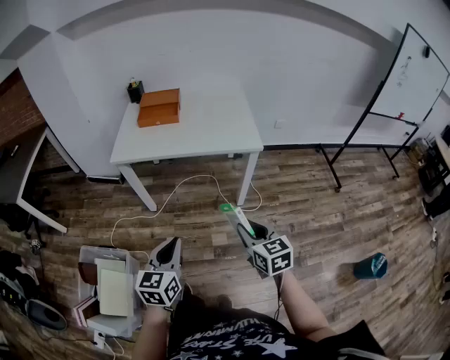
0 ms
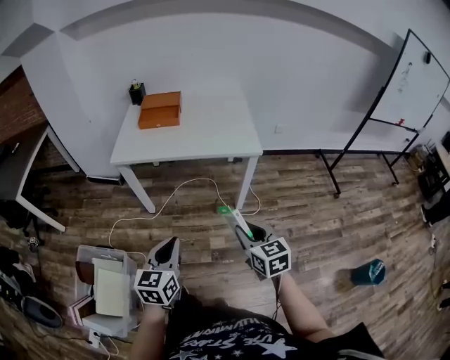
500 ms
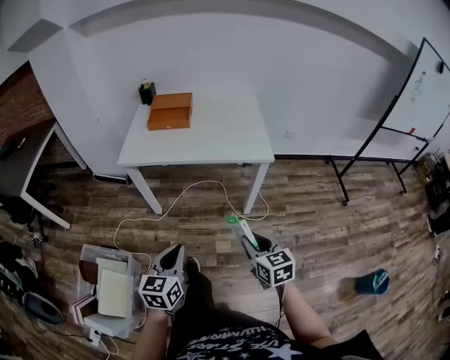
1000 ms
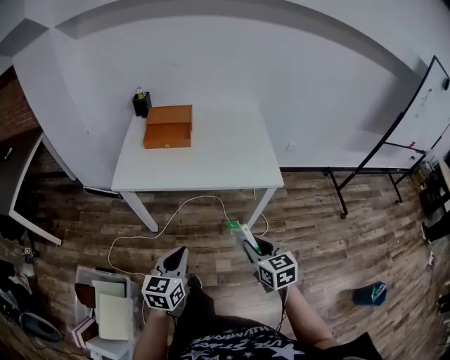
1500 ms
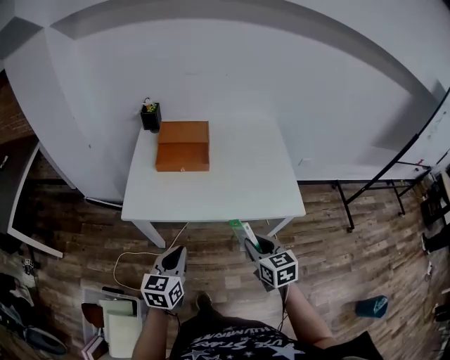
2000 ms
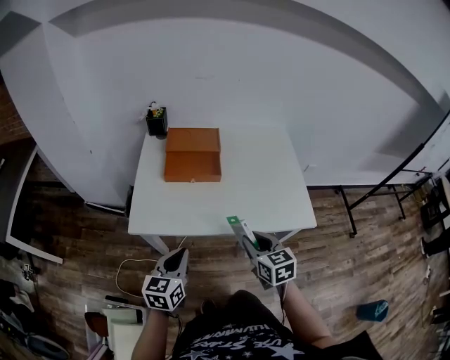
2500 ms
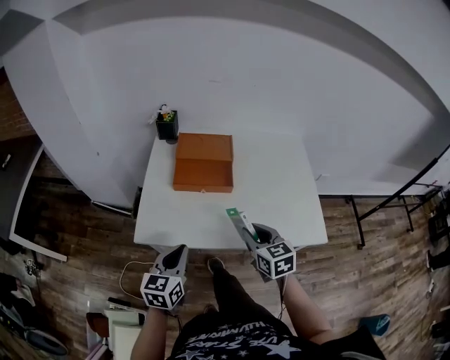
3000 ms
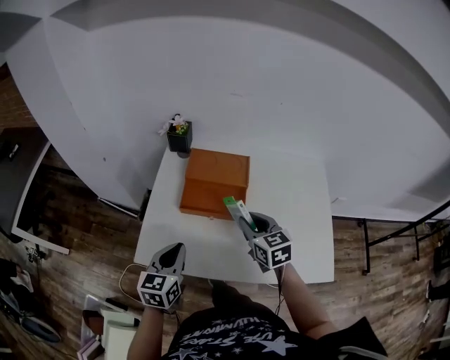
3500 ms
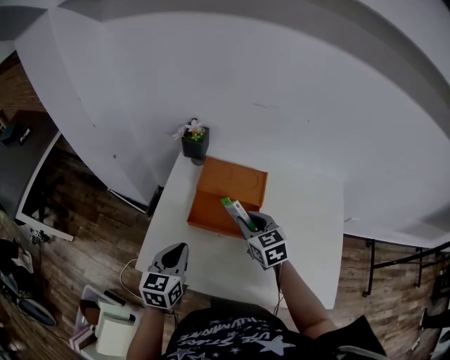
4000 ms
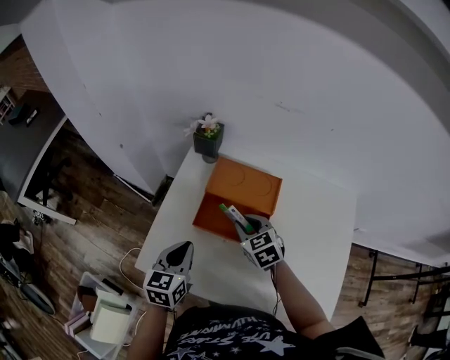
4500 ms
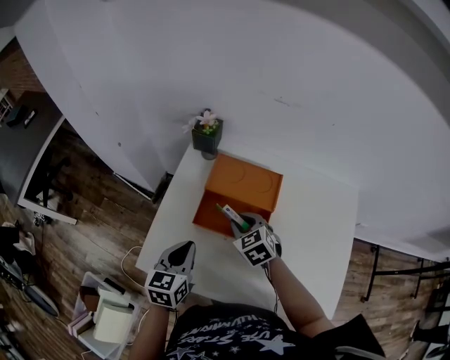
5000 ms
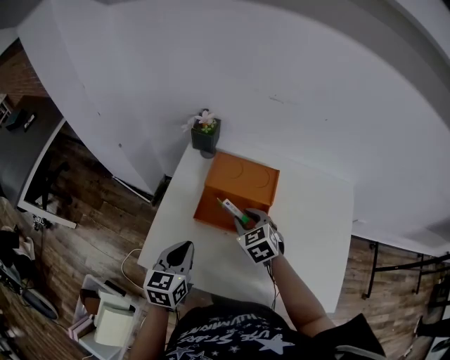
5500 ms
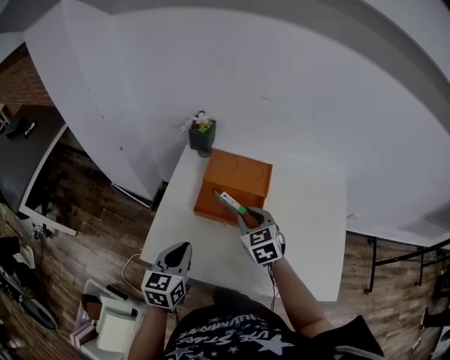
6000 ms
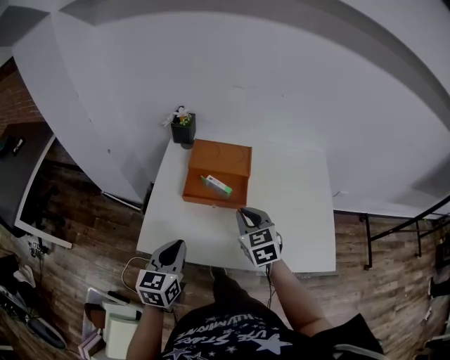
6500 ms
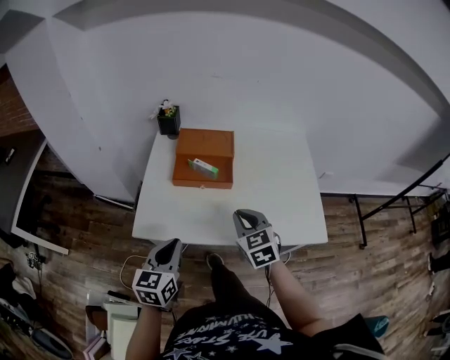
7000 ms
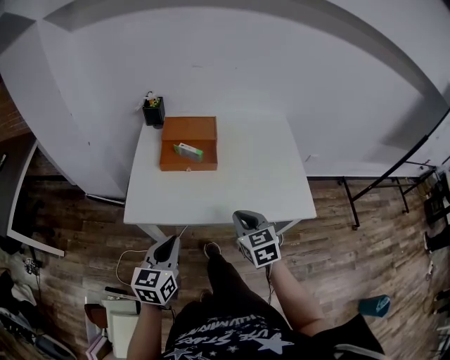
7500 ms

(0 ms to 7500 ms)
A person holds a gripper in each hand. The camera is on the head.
0 ms - 2000 ms: The grippers both shift forward by roughly 35 cm.
2000 ms - 4000 ms: The grippers both shift forward by some 40 cm. The right gripper swivels roughly 20 degrees.
4000 ms - 5500 ms: The right gripper ends up some 5 cm from where it was.
5500 ms - 7500 ms: Both grippers travel together backward, about 30 cm. The right gripper rotates about 30 degrees.

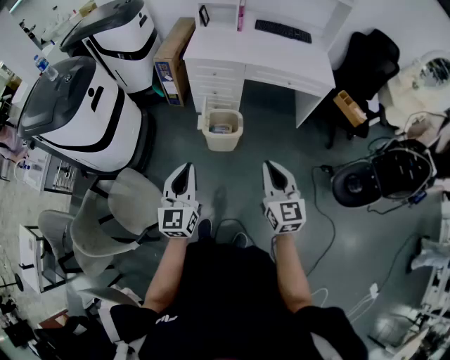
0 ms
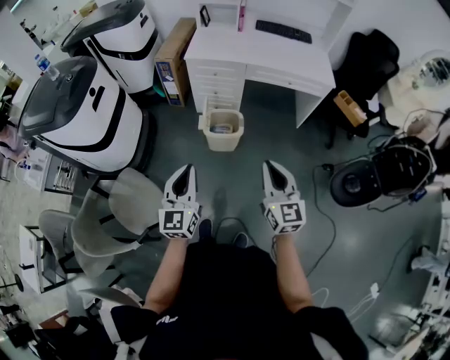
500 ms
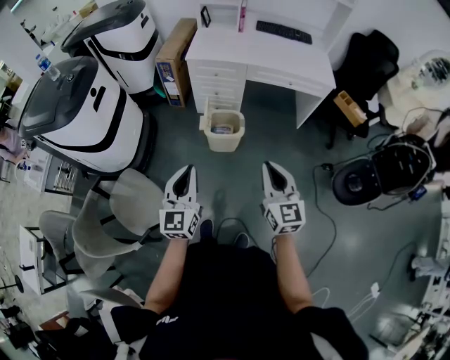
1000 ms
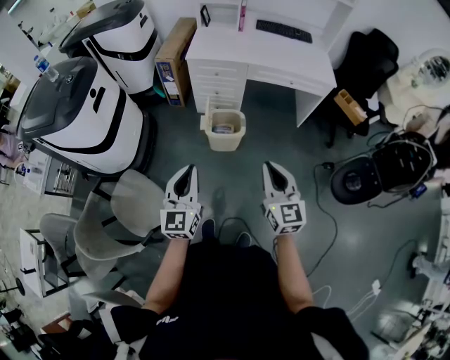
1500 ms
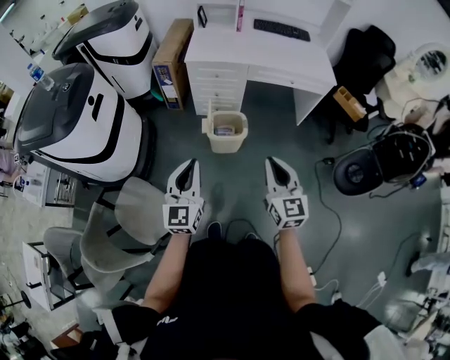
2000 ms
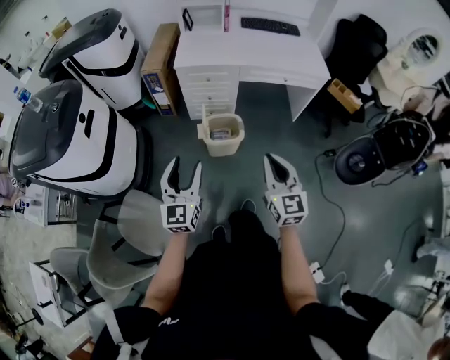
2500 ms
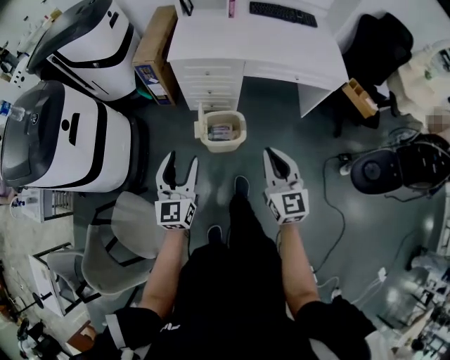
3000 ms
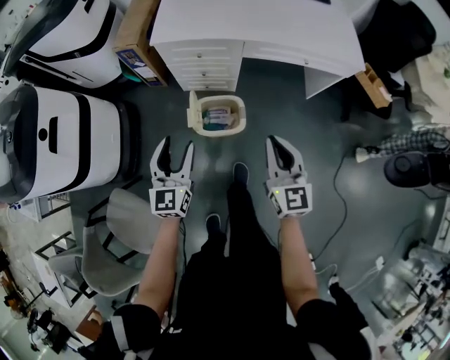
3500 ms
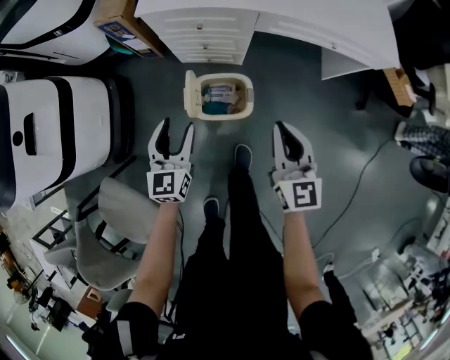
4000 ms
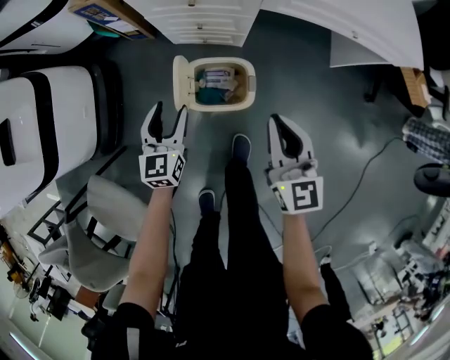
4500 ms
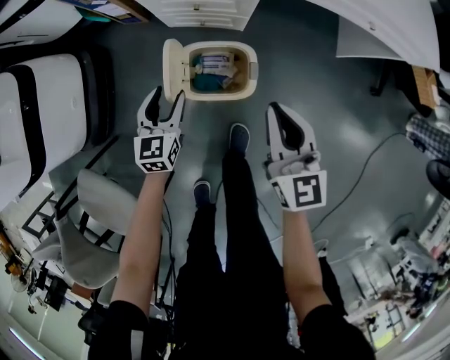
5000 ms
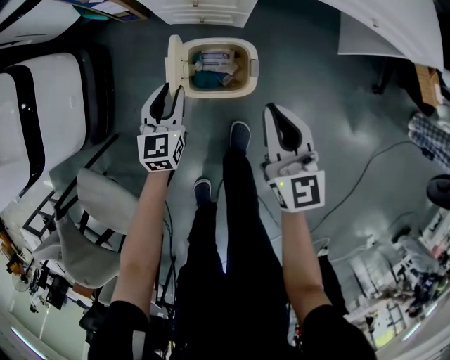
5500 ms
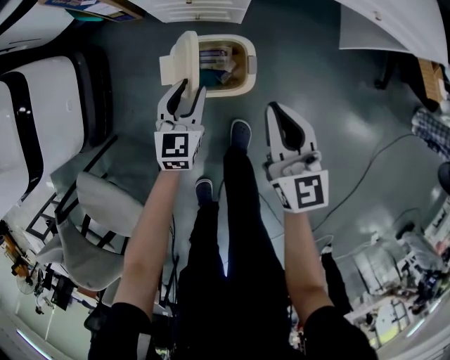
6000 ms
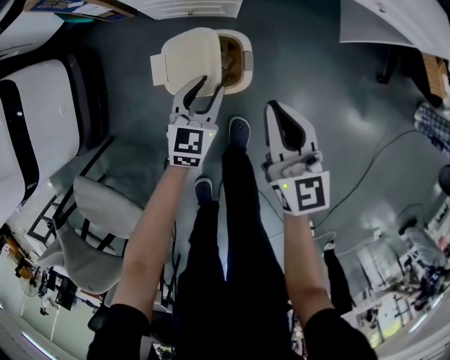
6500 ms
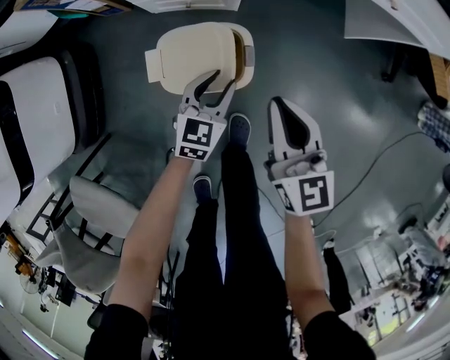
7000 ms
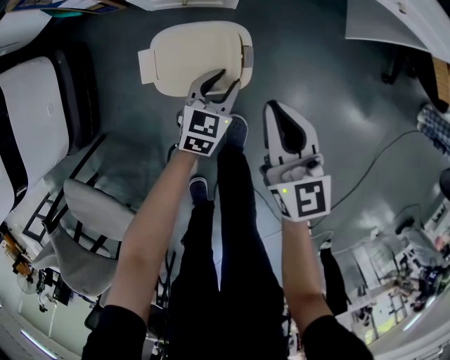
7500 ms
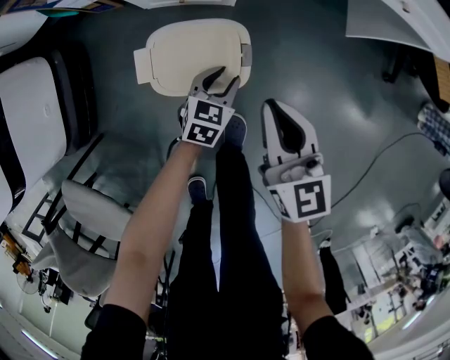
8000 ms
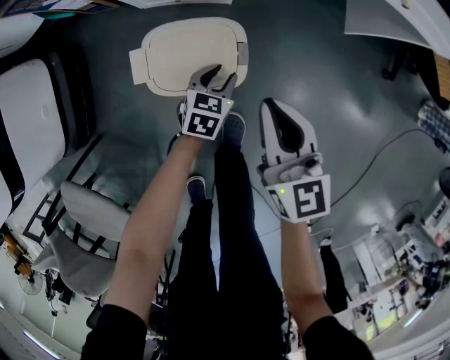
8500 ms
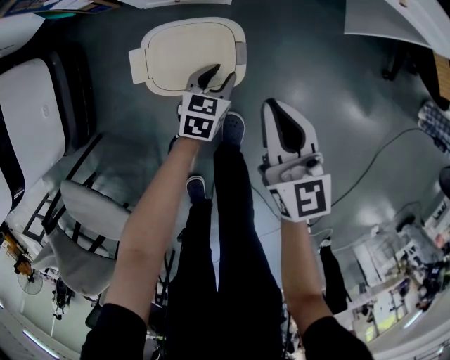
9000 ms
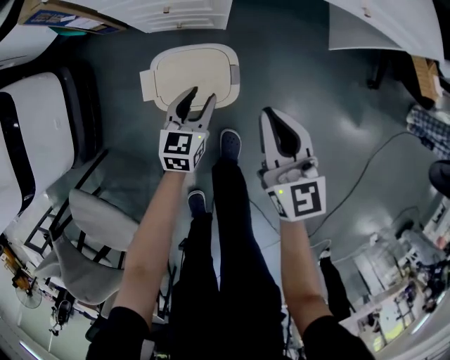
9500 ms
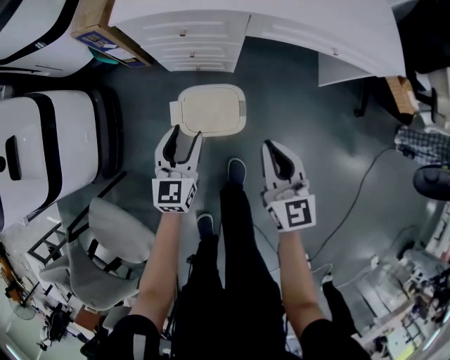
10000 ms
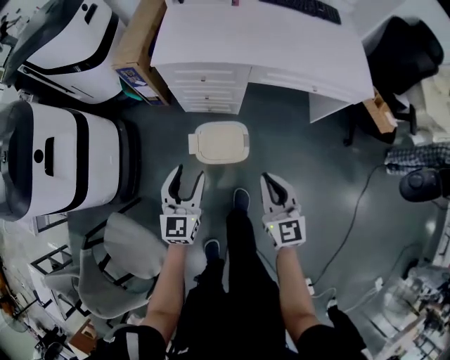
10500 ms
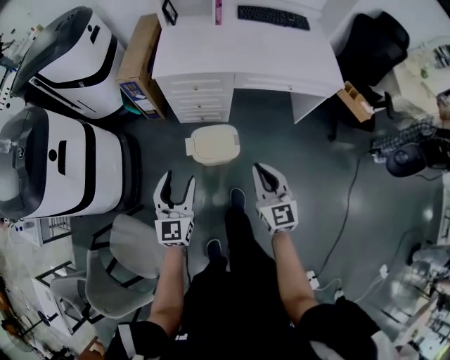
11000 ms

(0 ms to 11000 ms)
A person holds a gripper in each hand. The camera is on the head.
0 ms - 2000 ms: Both grippers travel together to the left, some 5 cm.
2000 ms - 3500 ms: The left gripper shifts roughly 35 cm forward and downward, and opens its fingers, while the right gripper is displaced forward by roughly 30 cm.
3500 ms - 5500 ms: The left gripper heads downward, covering some 35 cm, and closes its fingers. Meanwhile the right gripper goes about 25 cm downward and forward.
5500 ms - 7500 ms: The right gripper moves downward, some 10 cm; the left gripper is displaced to the right and downward by about 20 cm, and changes its angle by approximately 20 degrees.
7500 ms - 9000 ms: The left gripper travels downward by some 5 cm.
9000 ms - 11000 ms: The right gripper is displaced upward and backward by approximately 35 cm. The left gripper heads upward, covering some 60 cm, tilts its fingers some 40 degrees upward, and opens.

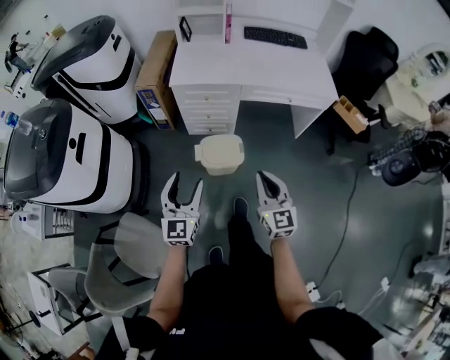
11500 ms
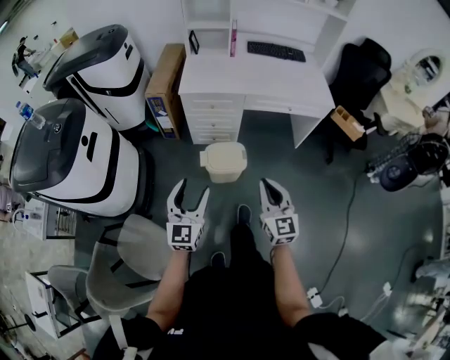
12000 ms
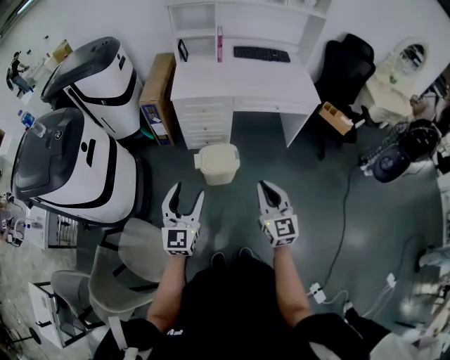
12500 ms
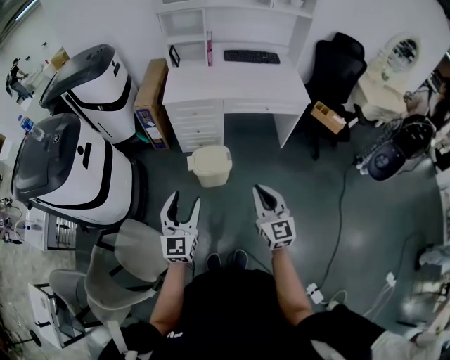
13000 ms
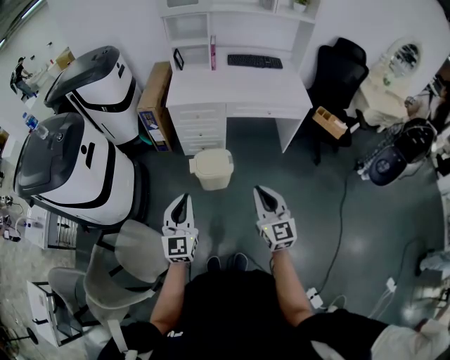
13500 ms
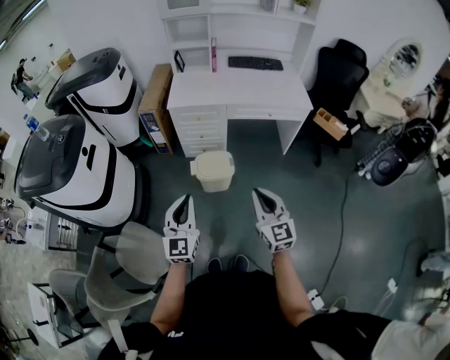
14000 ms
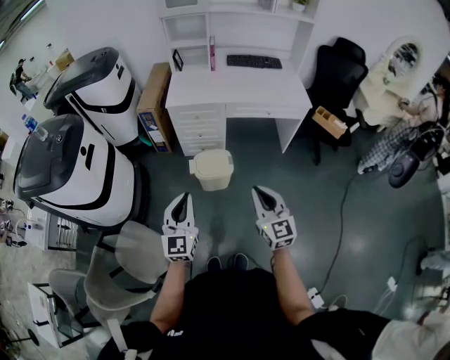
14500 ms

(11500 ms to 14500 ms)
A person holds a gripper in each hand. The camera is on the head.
11500 ms - 13000 ms: The two grippers go about 15 cm backward and upward.
13000 ms - 14500 ms: The left gripper closes up.

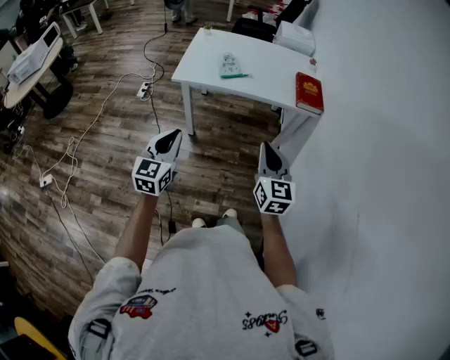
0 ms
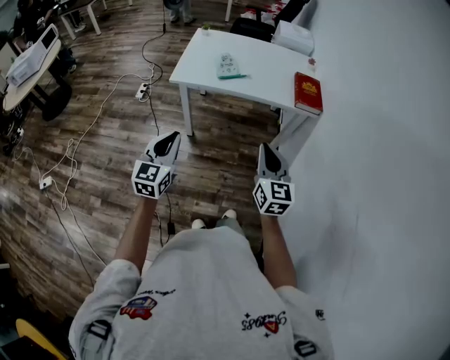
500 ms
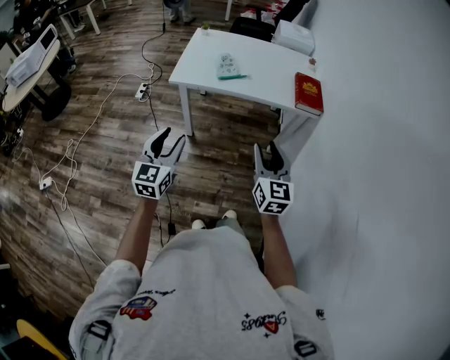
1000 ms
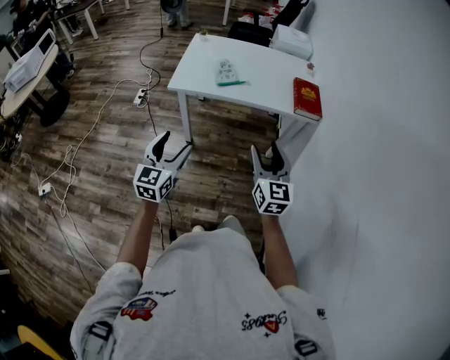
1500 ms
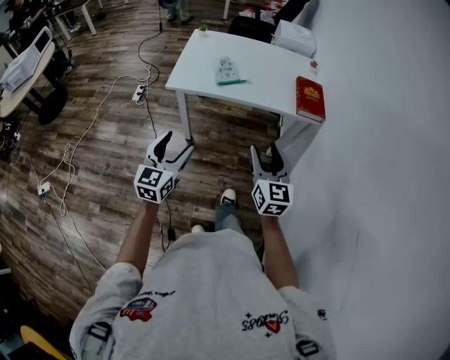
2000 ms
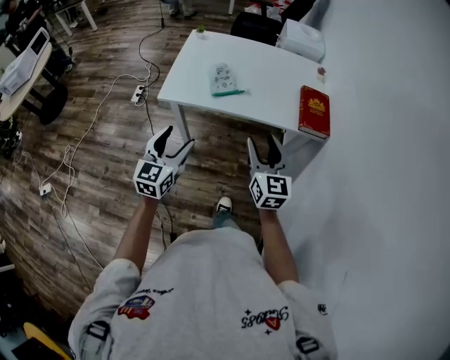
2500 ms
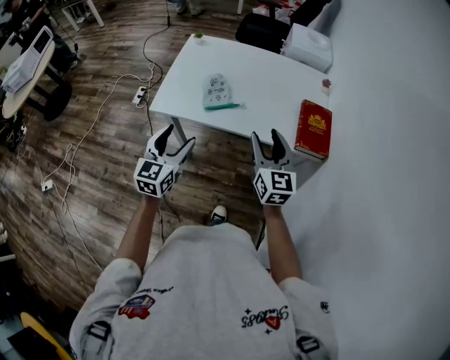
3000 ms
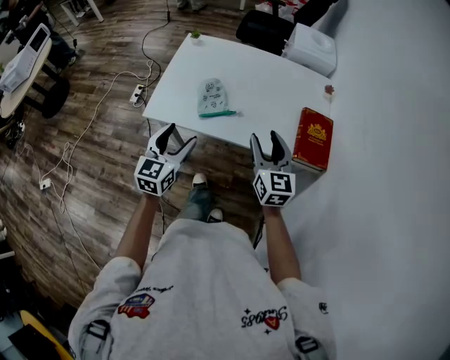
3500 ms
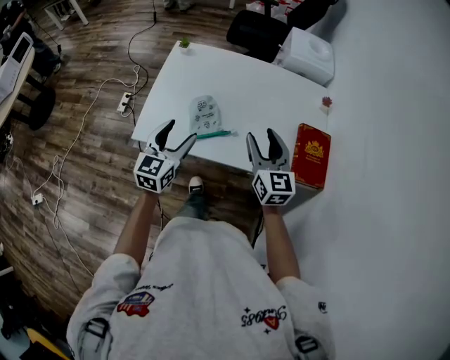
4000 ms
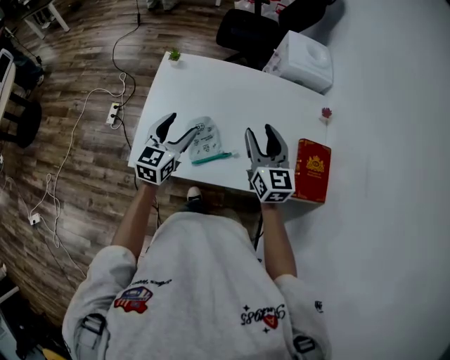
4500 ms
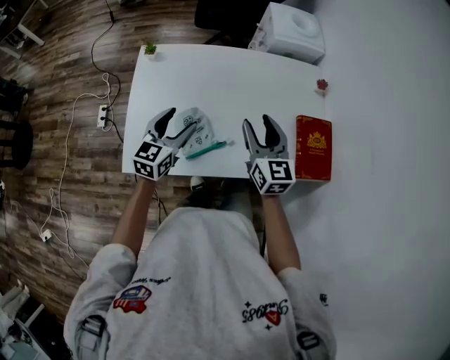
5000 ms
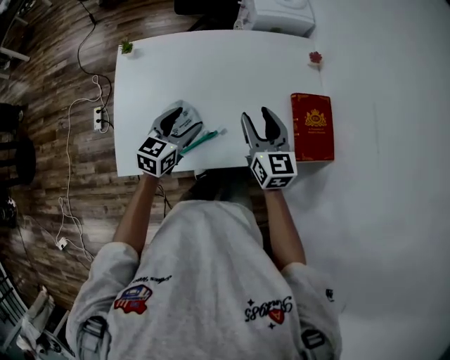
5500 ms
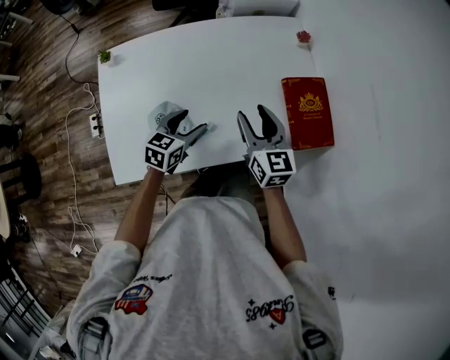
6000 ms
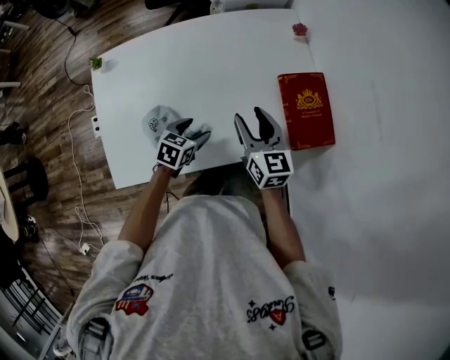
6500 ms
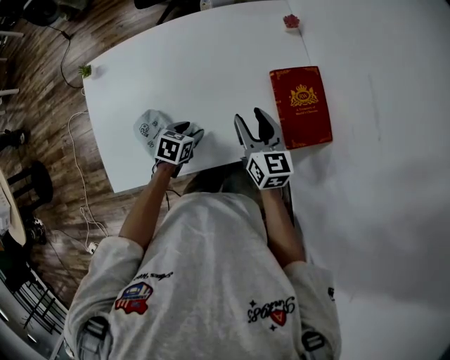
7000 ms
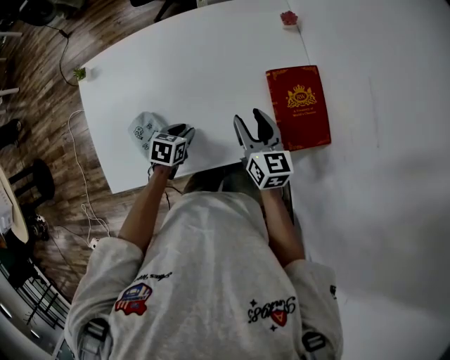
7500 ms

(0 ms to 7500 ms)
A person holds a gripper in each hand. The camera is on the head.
0 ms - 2000 ms: The grippers both shift forward by roughly 10 cm. The right gripper opens its fingers, while the left gripper opens.
2000 ms - 4000 ms: The two grippers travel together, forward, some 50 cm.
4000 ms - 5500 ms: The two grippers go about 20 cm forward and downward. The left gripper turns by some 30 degrees.
5500 ms - 7500 ms: The right gripper is displaced to the right, downward and forward by about 20 cm; the left gripper goes roughly 20 cm downward and to the right, tilts its fingers about 40 degrees downward, and closes.
